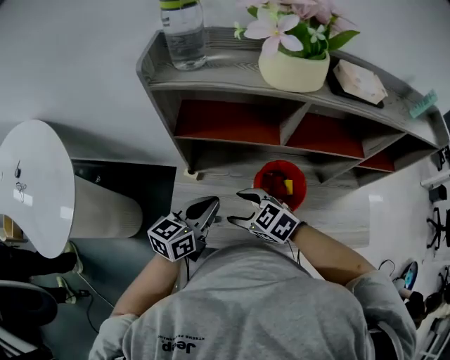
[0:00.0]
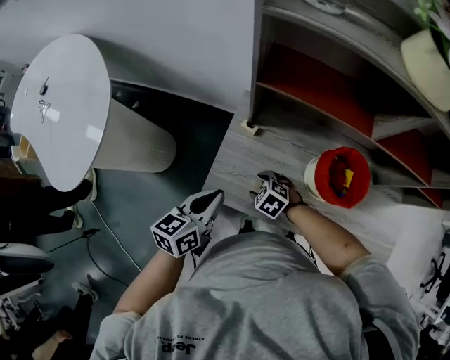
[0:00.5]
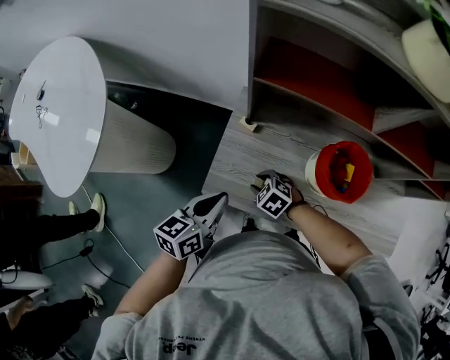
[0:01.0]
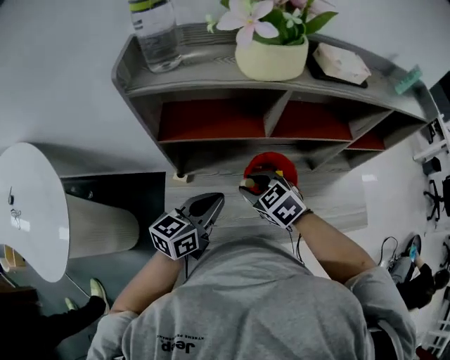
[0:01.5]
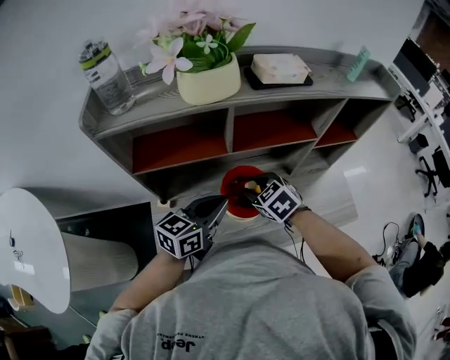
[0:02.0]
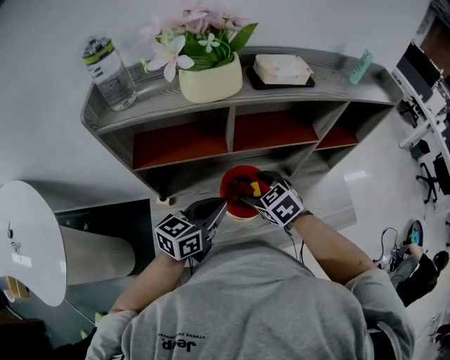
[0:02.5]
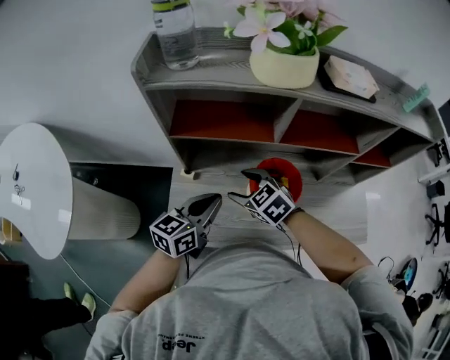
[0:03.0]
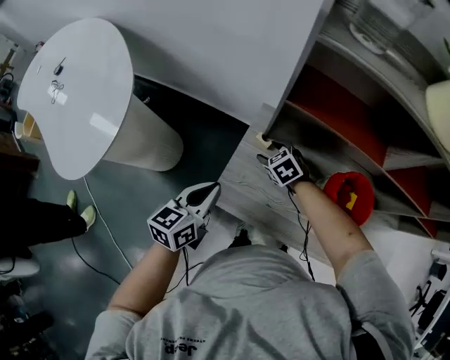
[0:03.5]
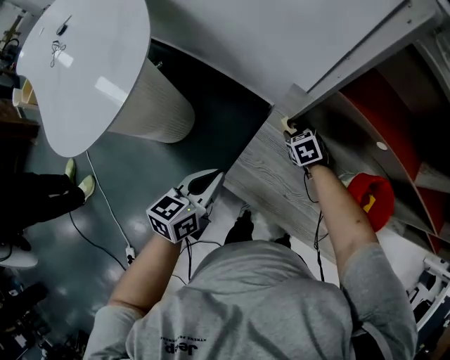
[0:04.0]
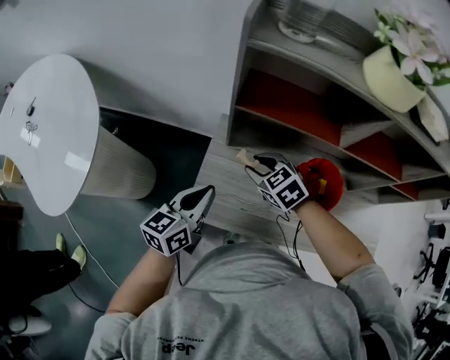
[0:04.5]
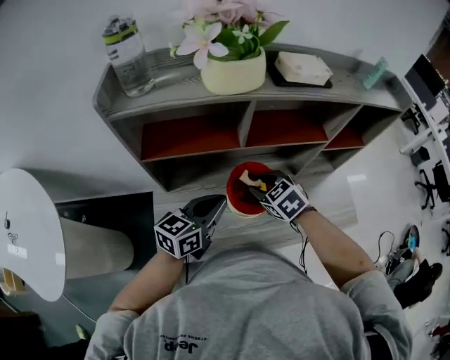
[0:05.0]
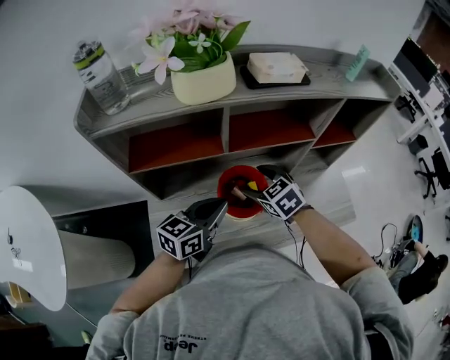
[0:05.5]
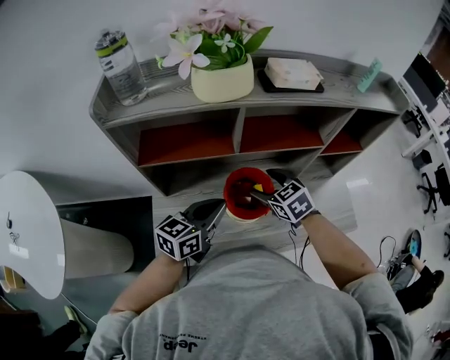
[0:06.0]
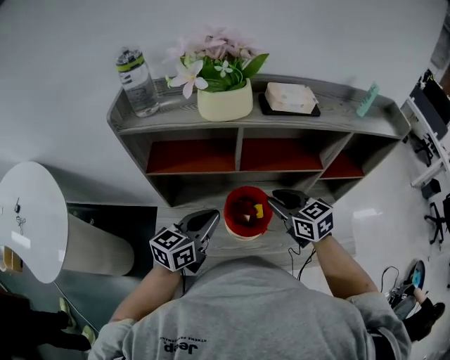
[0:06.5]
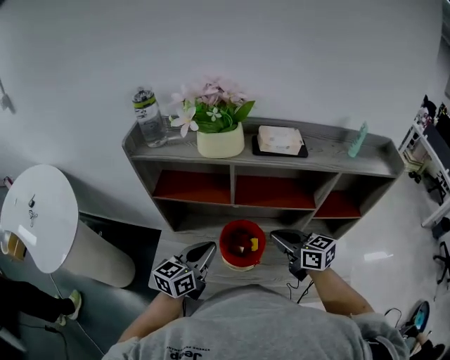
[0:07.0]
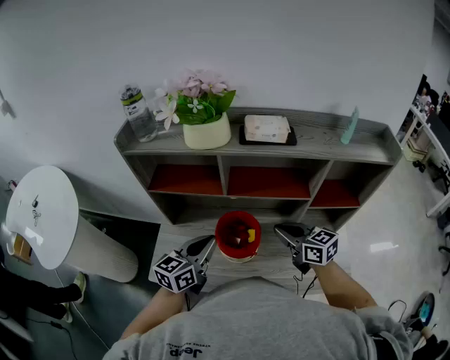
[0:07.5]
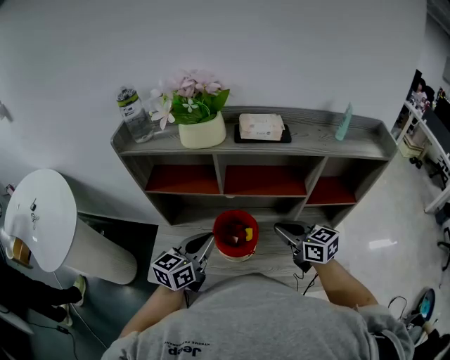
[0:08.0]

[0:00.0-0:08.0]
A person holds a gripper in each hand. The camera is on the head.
0.0 to 2.0 s: The left gripper goes downward and returns, approximately 10 cm each way, and changes its angle by approximately 20 degrees. Meanwhile the right gripper reaches roughly 20 cm downward, then returns, swivels roughly 30 degrees, and closes.
2.0 to 4.0 s: The right gripper changes place by some 40 cm, swivels some 30 degrees, and opens, then closes again; the left gripper changes place by some 40 cm, and rotates approximately 50 degrees.
4.0 to 6.0 s: The right gripper moves roughly 50 cm, turns by some 30 degrees, and opens up, while the left gripper changes place by about 40 cm, and changes its angle by approximately 50 degrees.
6.0 to 8.0 s: The right gripper travels to the right and upward by about 15 cm, swivels some 30 degrees, and closes its fingers. Meanwhile the left gripper ends up about 5 cm from where it was.

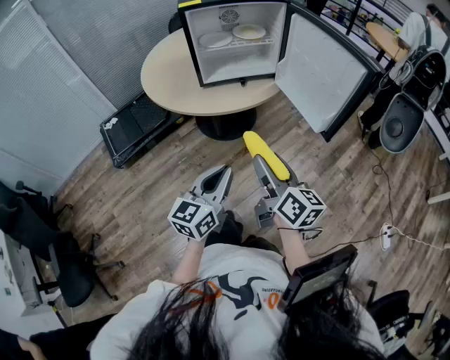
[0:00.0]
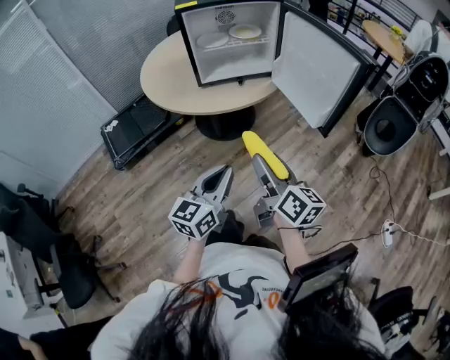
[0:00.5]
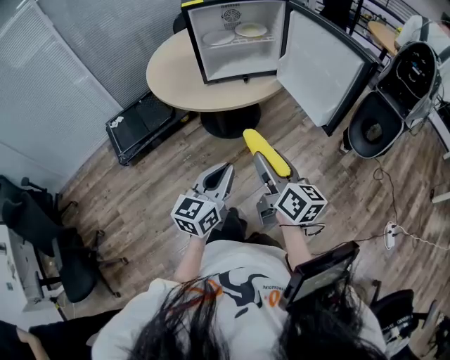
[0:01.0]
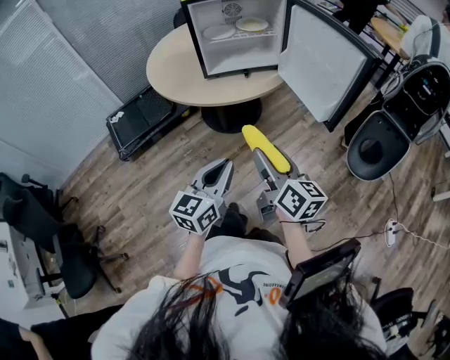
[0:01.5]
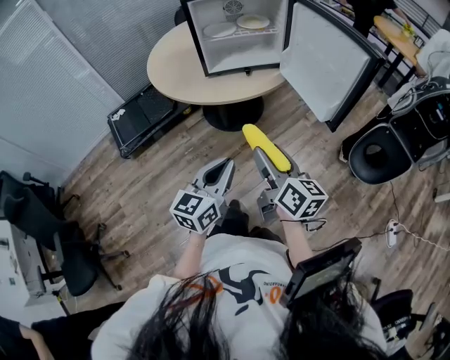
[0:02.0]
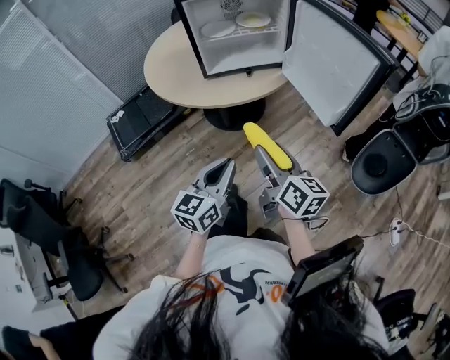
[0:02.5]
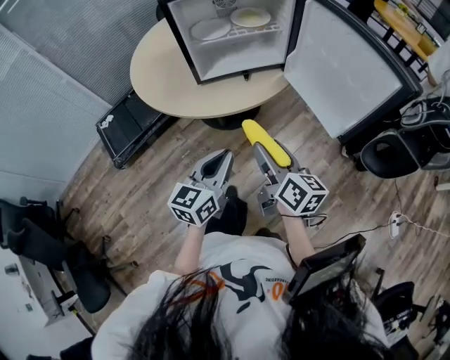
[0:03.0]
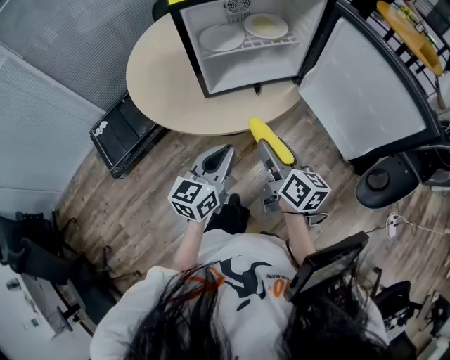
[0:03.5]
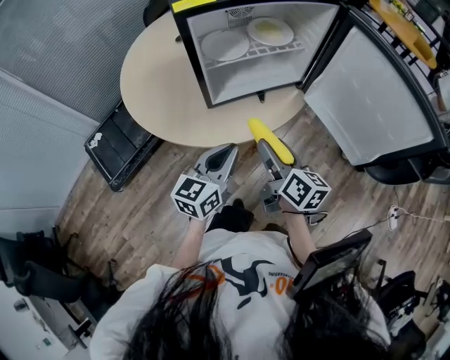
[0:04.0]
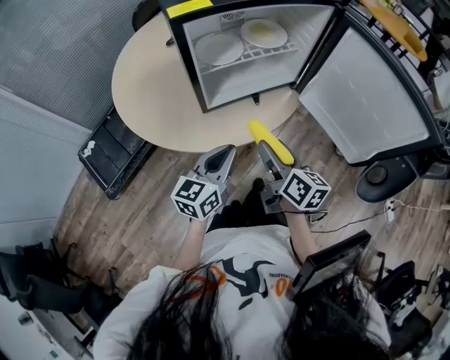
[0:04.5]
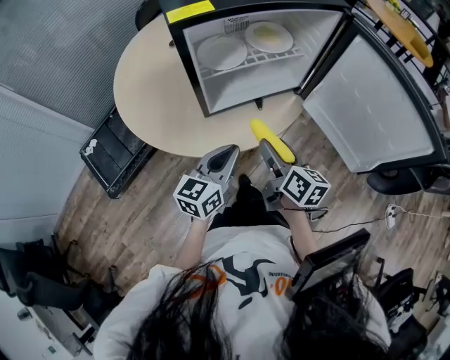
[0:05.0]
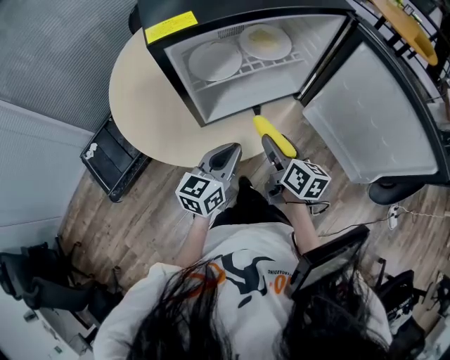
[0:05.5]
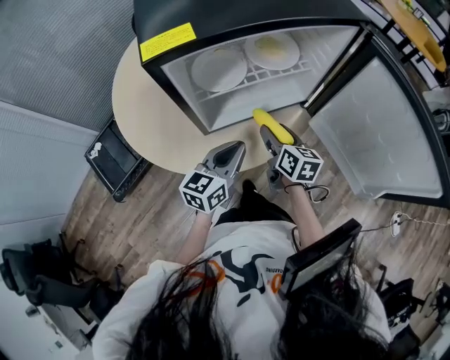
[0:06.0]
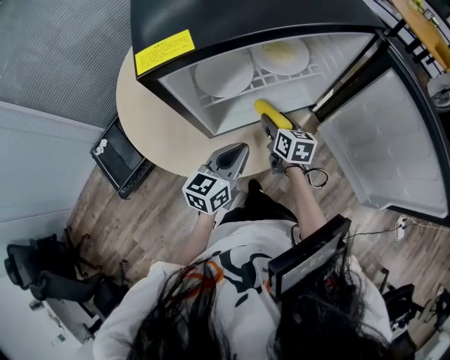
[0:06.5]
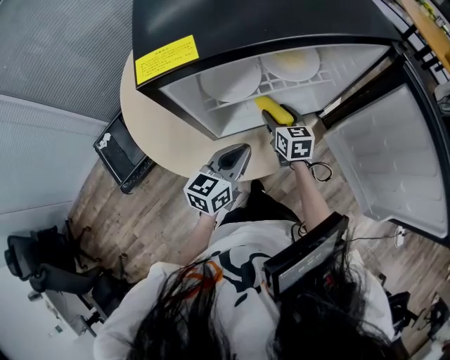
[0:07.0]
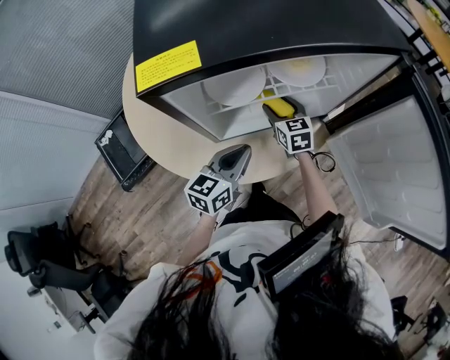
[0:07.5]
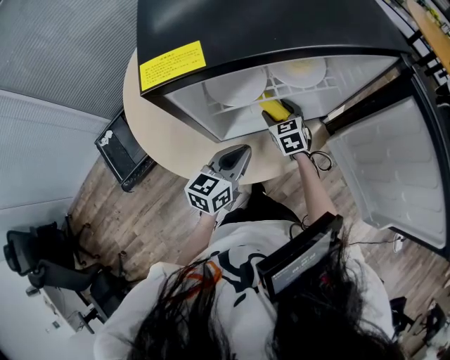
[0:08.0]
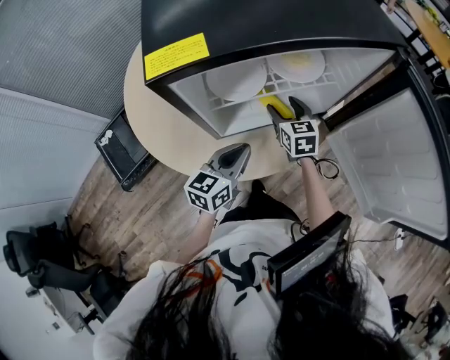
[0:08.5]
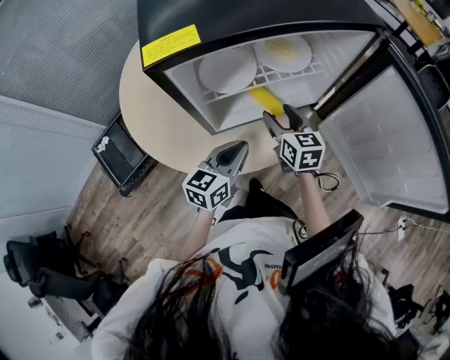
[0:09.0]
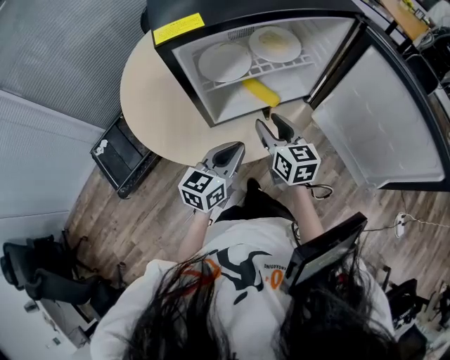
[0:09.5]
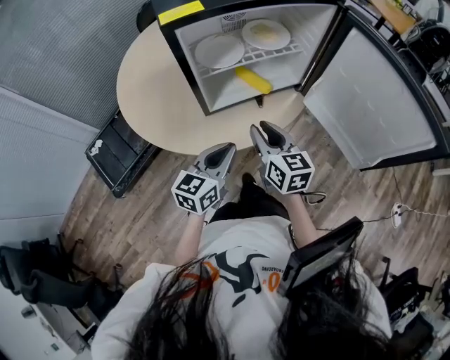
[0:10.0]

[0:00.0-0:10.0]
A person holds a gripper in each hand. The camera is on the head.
0.0 to 2.0 s: The grippers make only small movements.
2.0 to 4.0 s: The two grippers go some 30 cm forward and to the left.
4.0 to 6.0 s: The right gripper shifts some 20 cm forward and downward; the left gripper shifts some 15 cm forward.
6.0 to 8.0 s: The right gripper moves forward, downward and to the left, about 15 cm, and rolls counterclockwise, seen from behind, by some 40 degrees. The left gripper changes place by about 5 cm.
8.0 to 10.0 s: The left gripper heads backward, covering approximately 15 cm. Meanwhile the right gripper goes some 30 cm backward and upward, swivels approximately 30 degrees, and closes up.

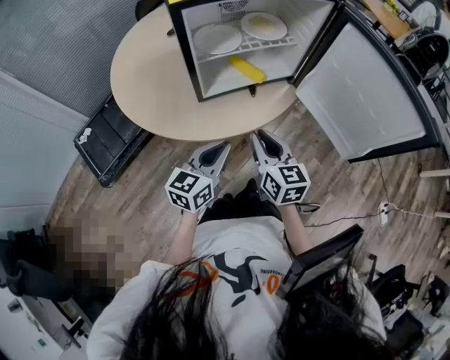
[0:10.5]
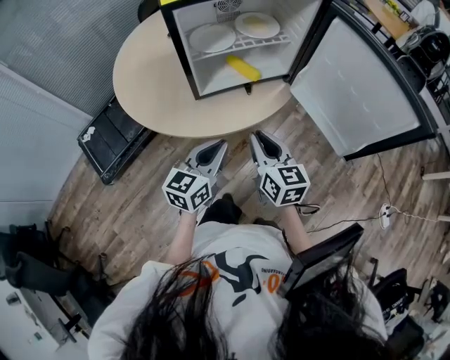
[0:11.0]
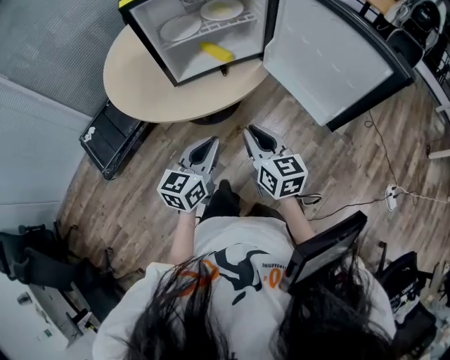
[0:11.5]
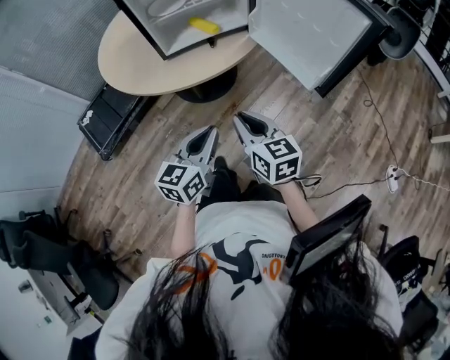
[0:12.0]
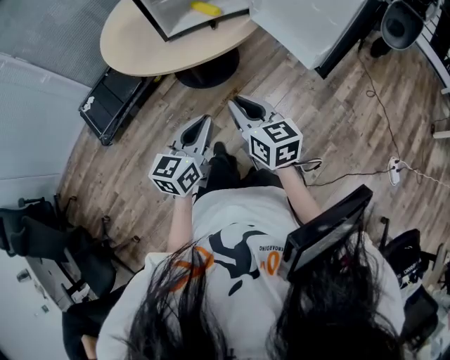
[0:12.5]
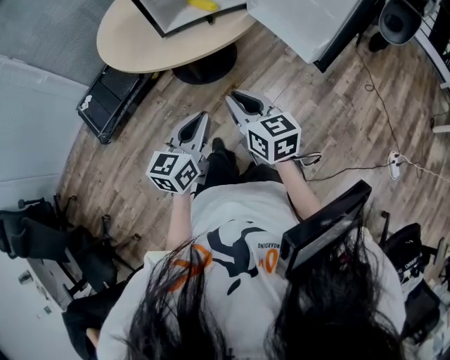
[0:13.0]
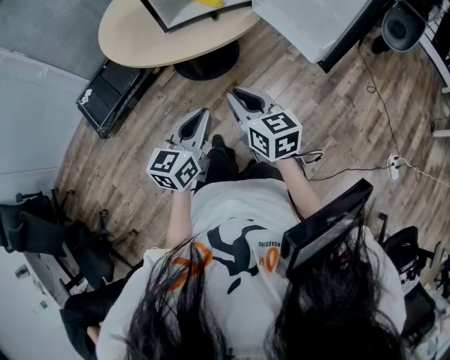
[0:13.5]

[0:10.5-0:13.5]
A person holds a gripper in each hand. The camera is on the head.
10.5 to 12.0 s: Both grippers move backward and to the right, approximately 20 cm.
12.0 to 13.5 s: The grippers move only a little.

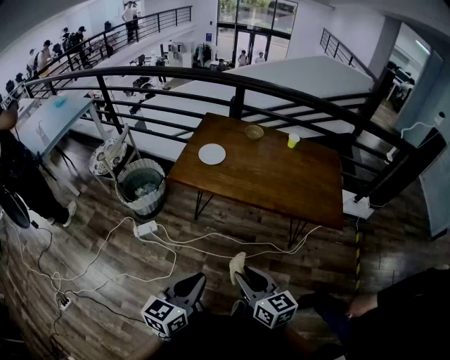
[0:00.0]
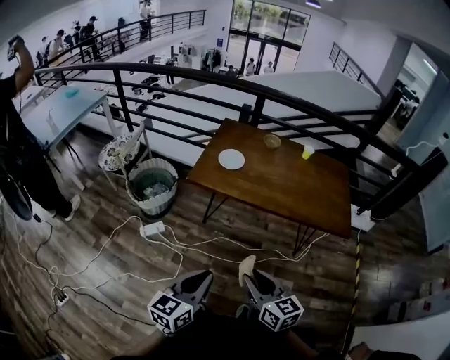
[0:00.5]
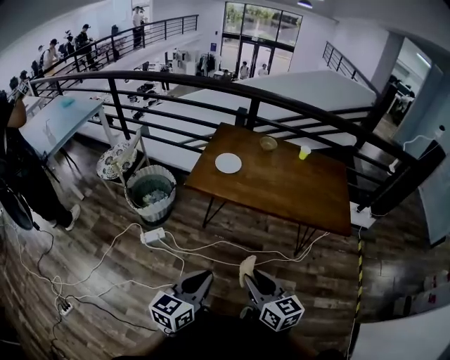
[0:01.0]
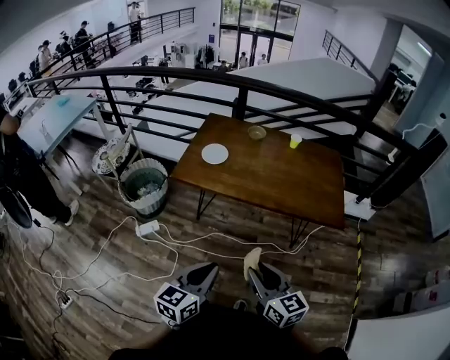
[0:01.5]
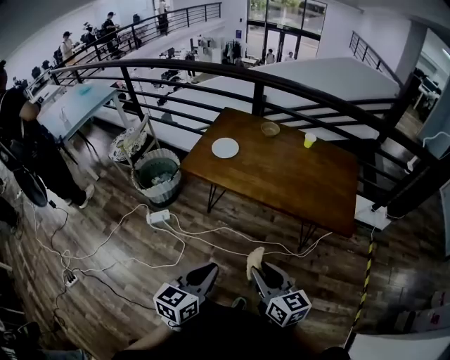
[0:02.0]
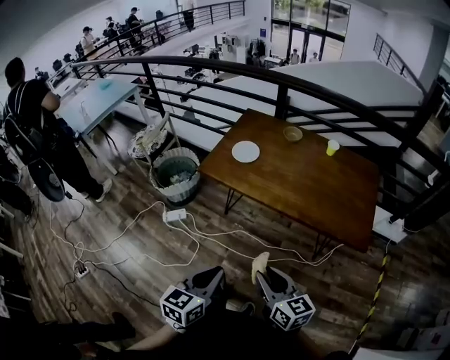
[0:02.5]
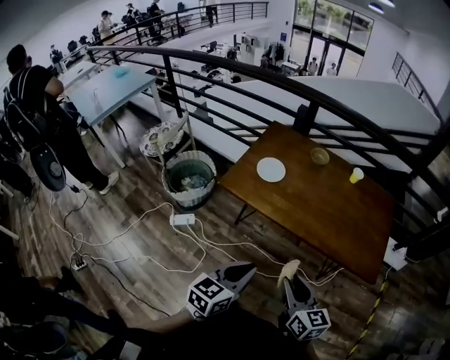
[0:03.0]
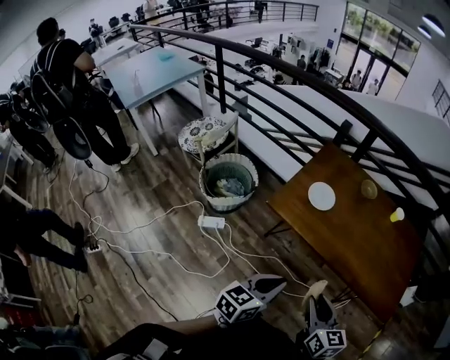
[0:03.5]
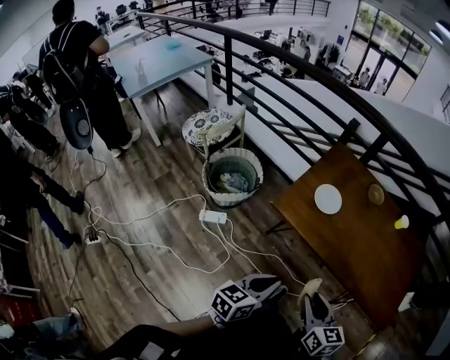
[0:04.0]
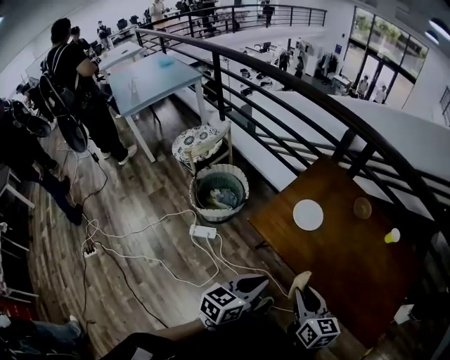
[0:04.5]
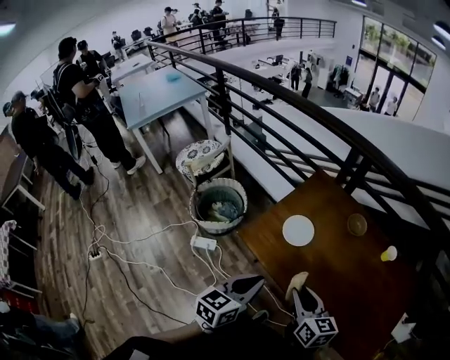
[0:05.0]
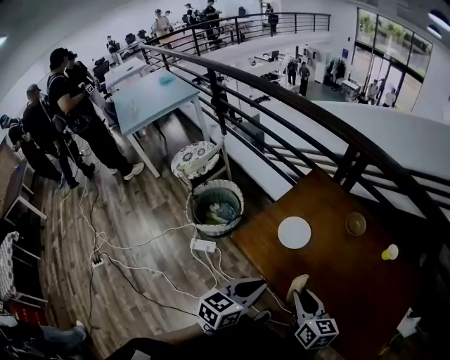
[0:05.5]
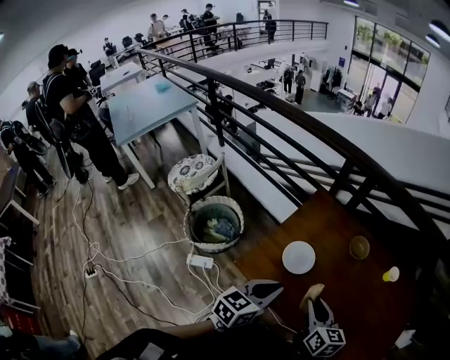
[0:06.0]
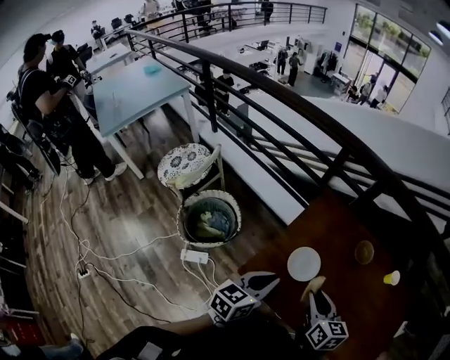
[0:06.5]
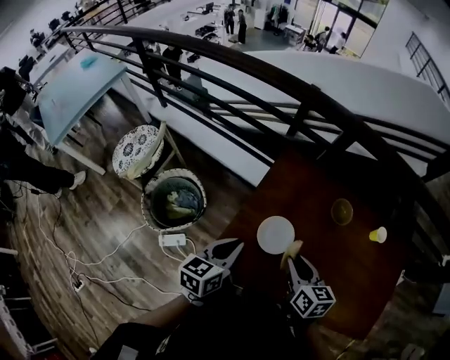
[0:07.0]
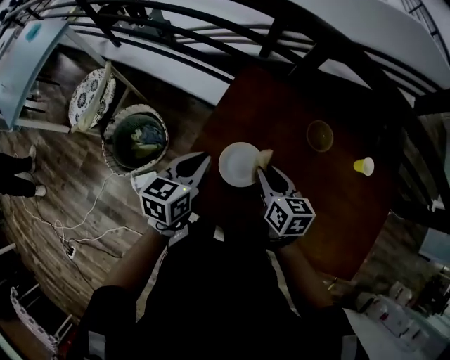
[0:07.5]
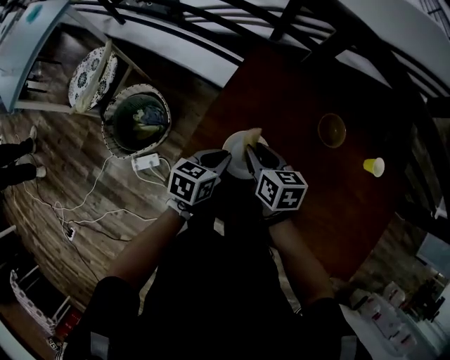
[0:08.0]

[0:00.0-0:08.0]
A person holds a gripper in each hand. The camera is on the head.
0.0 to 2.0 s: The grippers both shift to the right by some 5 cm.
2.0 to 4.0 s: The two grippers go about 30 cm forward and to the left.
4.0 to 6.0 s: The grippers both shift forward by roughly 30 cm.
6.0 to 8.0 s: The right gripper travels forward and downward by some 30 cm. The left gripper travels downward and forward by approximately 30 cm, and turns by some 20 degrees.
